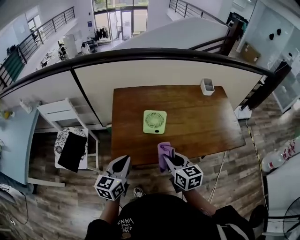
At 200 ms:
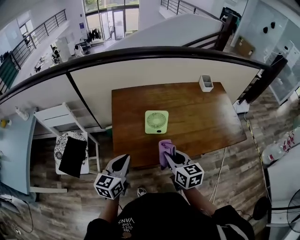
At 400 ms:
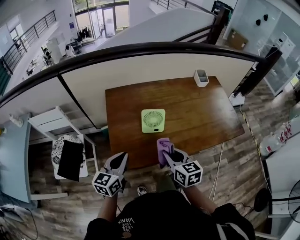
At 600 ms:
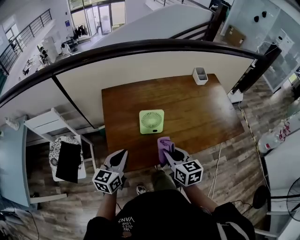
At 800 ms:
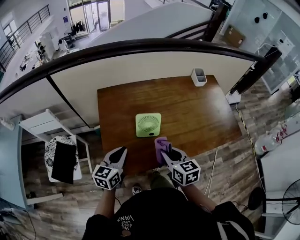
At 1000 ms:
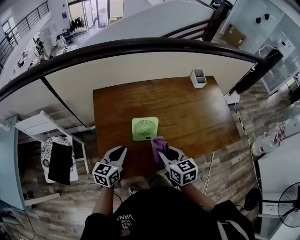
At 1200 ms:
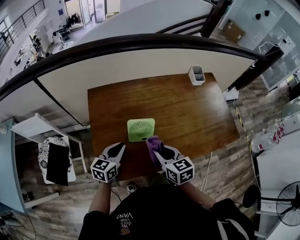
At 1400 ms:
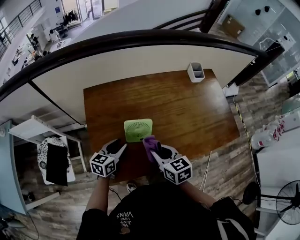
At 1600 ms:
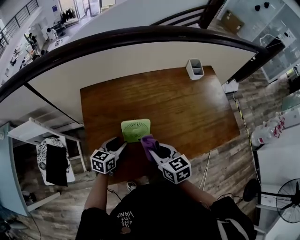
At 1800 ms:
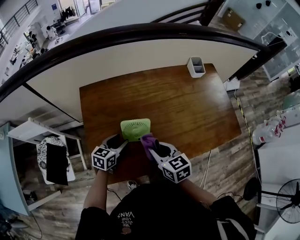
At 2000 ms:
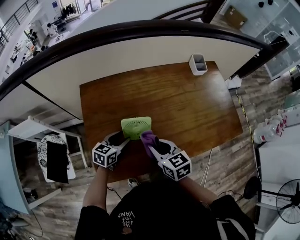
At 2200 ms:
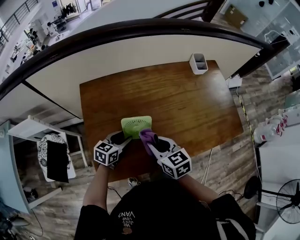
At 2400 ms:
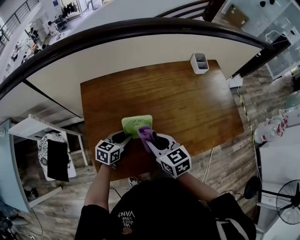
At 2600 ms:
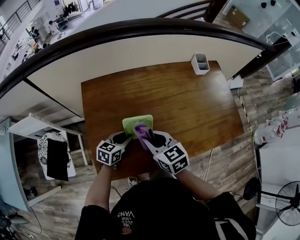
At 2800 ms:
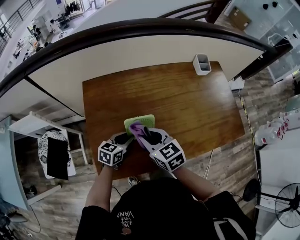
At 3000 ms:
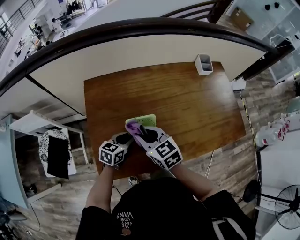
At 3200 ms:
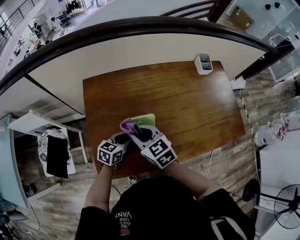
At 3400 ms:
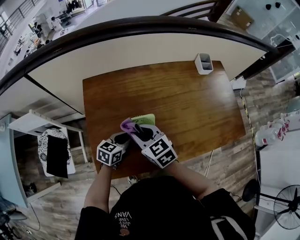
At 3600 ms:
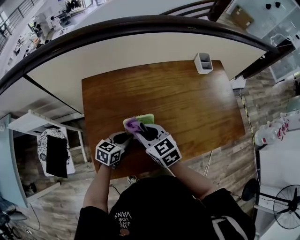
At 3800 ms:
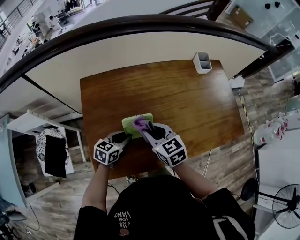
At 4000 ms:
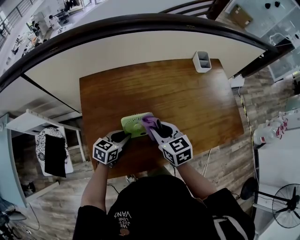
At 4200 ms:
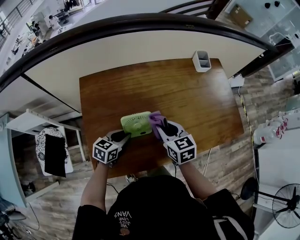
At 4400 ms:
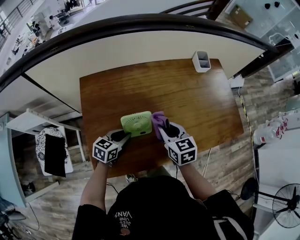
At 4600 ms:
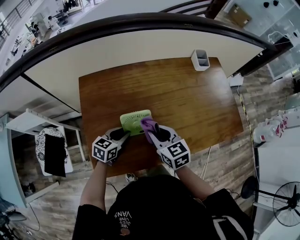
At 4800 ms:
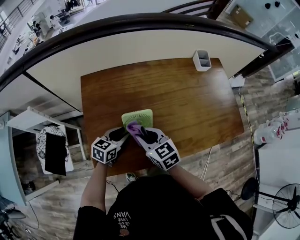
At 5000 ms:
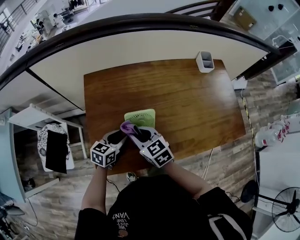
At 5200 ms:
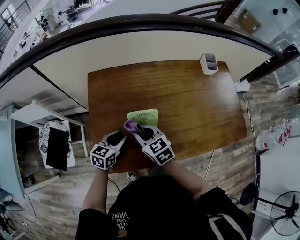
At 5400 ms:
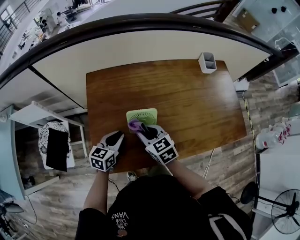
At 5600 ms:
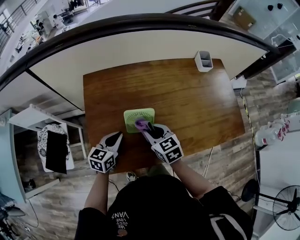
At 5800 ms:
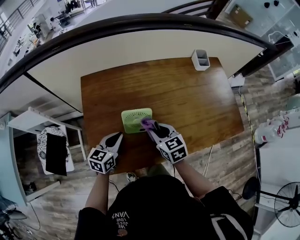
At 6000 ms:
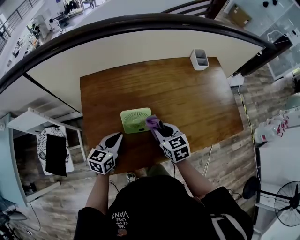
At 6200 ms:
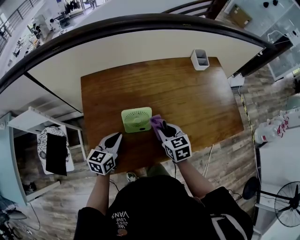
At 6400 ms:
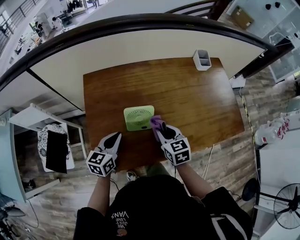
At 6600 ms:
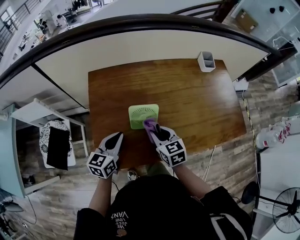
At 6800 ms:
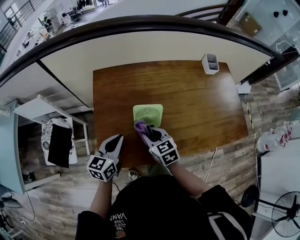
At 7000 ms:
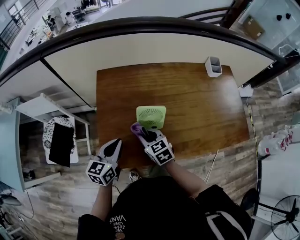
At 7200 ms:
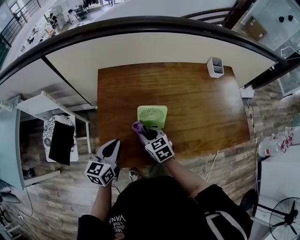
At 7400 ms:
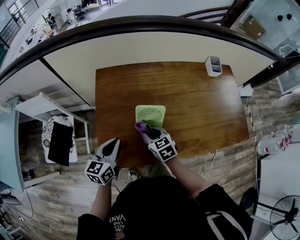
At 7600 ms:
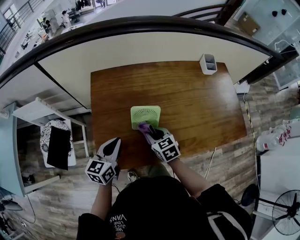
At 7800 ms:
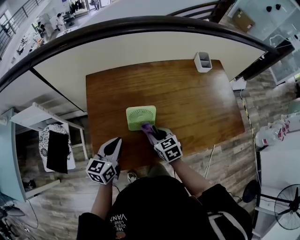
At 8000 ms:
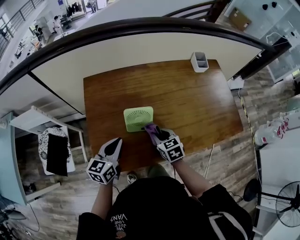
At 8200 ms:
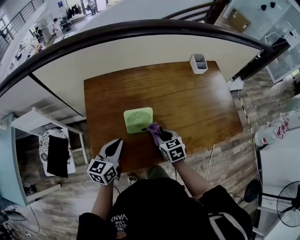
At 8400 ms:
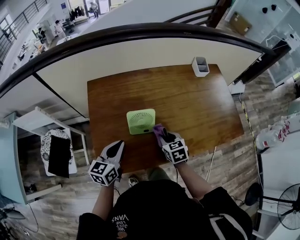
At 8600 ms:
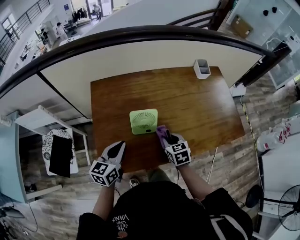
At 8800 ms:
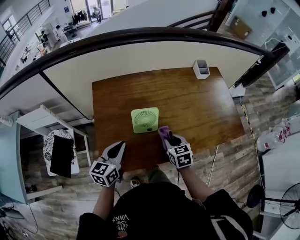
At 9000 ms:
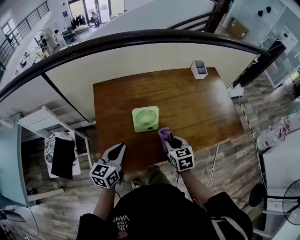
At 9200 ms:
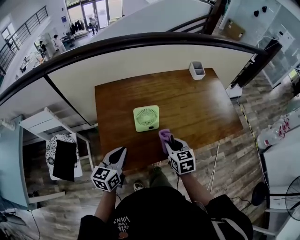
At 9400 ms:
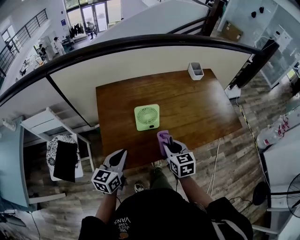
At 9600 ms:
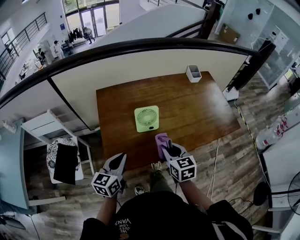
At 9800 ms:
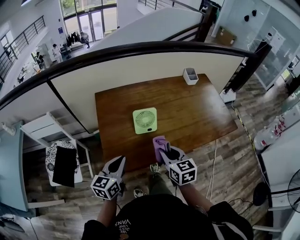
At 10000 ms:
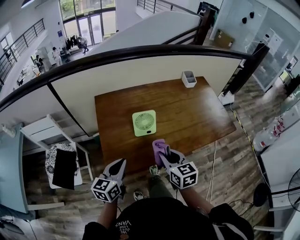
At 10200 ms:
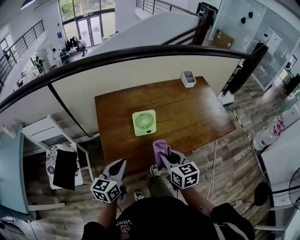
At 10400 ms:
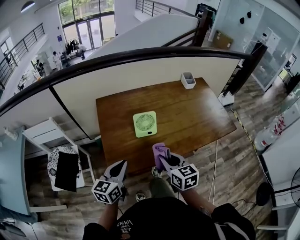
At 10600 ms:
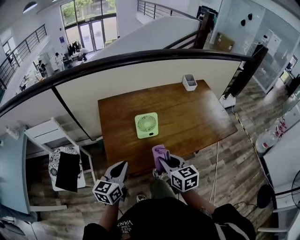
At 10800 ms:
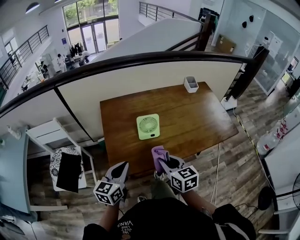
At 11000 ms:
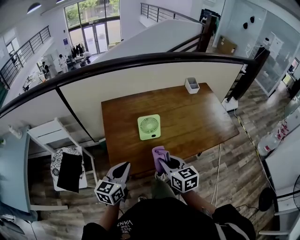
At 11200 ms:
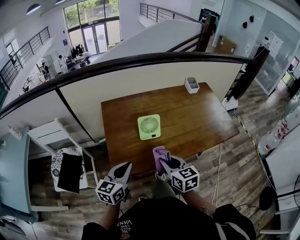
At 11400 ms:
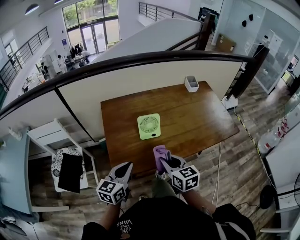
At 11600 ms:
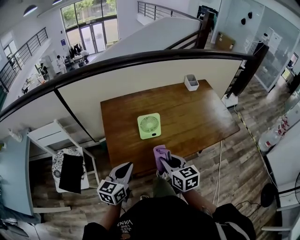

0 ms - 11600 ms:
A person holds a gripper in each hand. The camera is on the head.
0 ms - 1400 ms: The left gripper moves forward and downward, about 25 cm, rotates about 20 degrees, and opens its fingers; the right gripper heads forward and downward, covering approximately 15 cm.
1400 ms - 2800 ms: The left gripper changes place by some 5 cm. Meanwhile the right gripper moves to the left and forward, roughly 5 cm.
2800 ms - 4400 ms: The right gripper moves to the right, about 10 cm.
4400 ms - 5800 ms: The right gripper reaches approximately 15 cm to the left, then returns. Meanwhile the left gripper travels upward by some 5 cm, and closes.
5800 ms - 7200 ms: The right gripper heads to the left, covering approximately 10 cm. The left gripper is displaced to the left, backward and upward by some 10 cm.
7200 ms - 8800 ms: The right gripper is displaced to the right by approximately 15 cm, and changes its angle by approximately 20 degrees.
8800 ms - 10200 ms: The right gripper travels backward and upward by approximately 15 cm; the left gripper goes roughly 10 cm backward.
10200 ms - 11600 ms: The grippers move only a little.

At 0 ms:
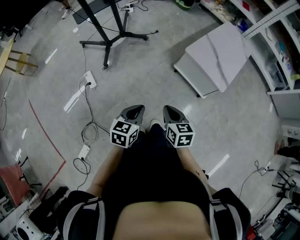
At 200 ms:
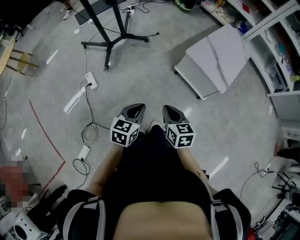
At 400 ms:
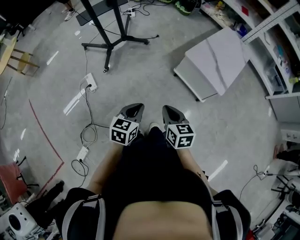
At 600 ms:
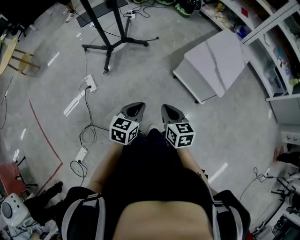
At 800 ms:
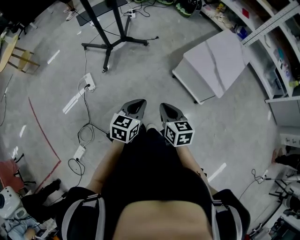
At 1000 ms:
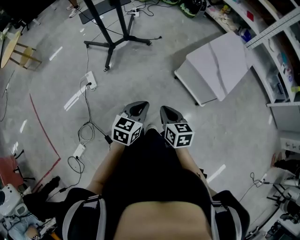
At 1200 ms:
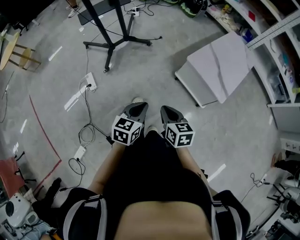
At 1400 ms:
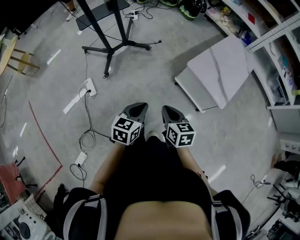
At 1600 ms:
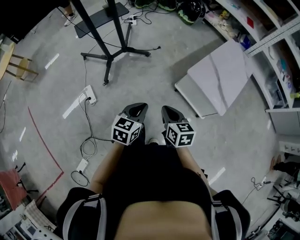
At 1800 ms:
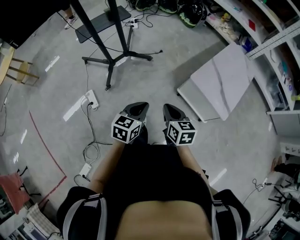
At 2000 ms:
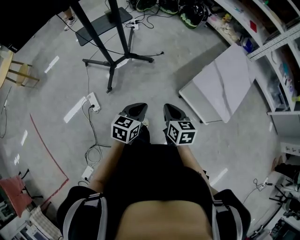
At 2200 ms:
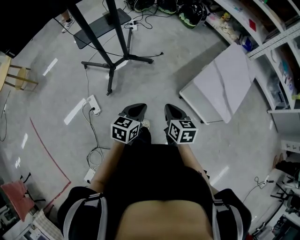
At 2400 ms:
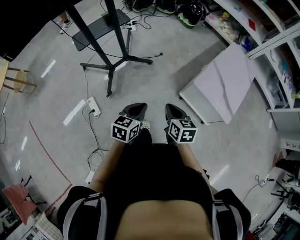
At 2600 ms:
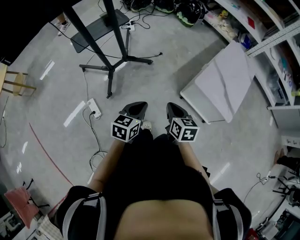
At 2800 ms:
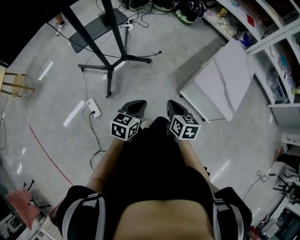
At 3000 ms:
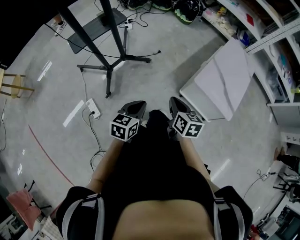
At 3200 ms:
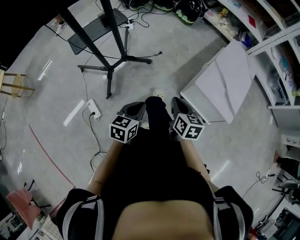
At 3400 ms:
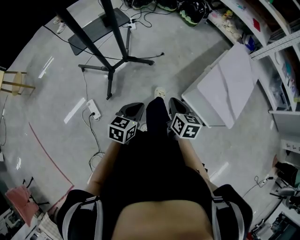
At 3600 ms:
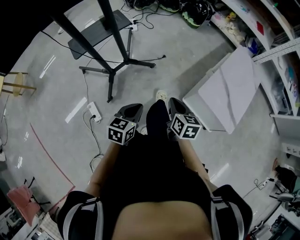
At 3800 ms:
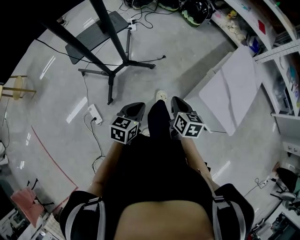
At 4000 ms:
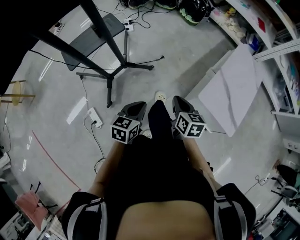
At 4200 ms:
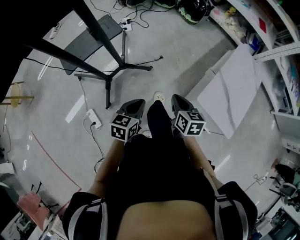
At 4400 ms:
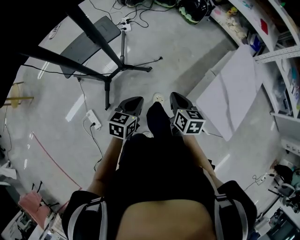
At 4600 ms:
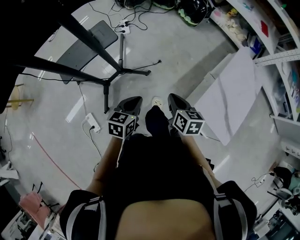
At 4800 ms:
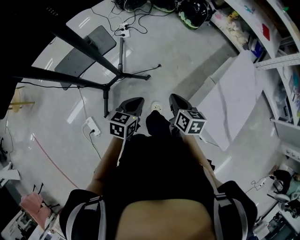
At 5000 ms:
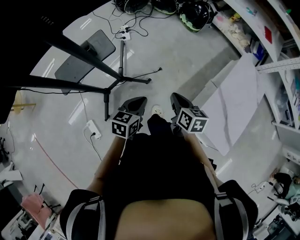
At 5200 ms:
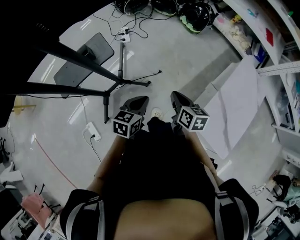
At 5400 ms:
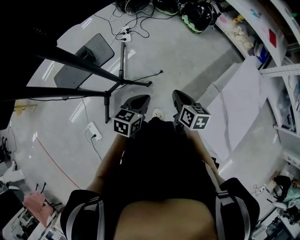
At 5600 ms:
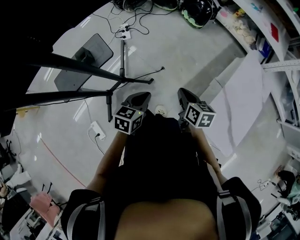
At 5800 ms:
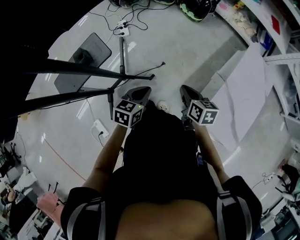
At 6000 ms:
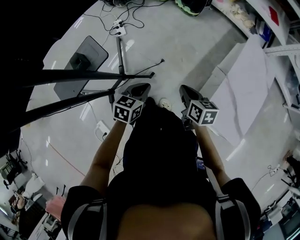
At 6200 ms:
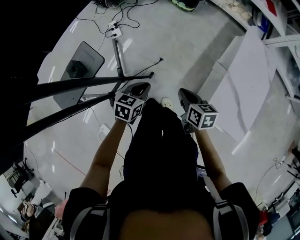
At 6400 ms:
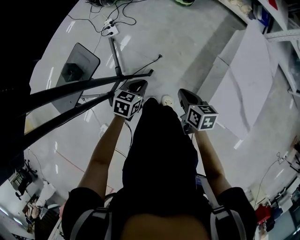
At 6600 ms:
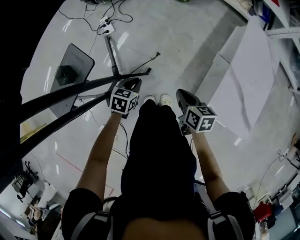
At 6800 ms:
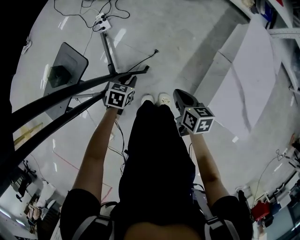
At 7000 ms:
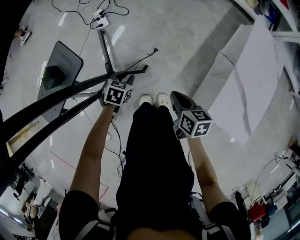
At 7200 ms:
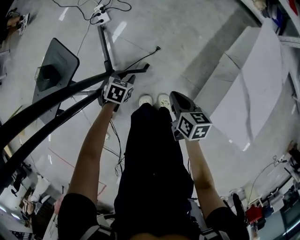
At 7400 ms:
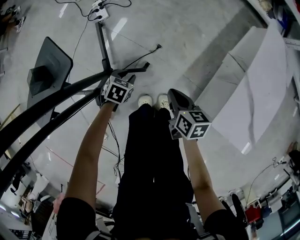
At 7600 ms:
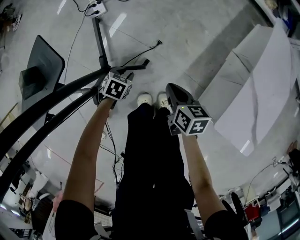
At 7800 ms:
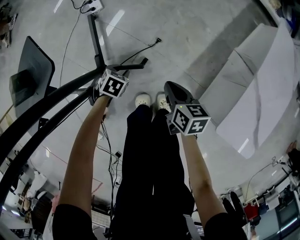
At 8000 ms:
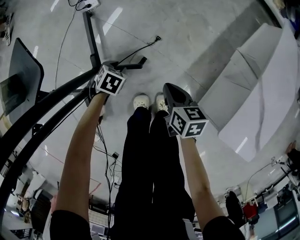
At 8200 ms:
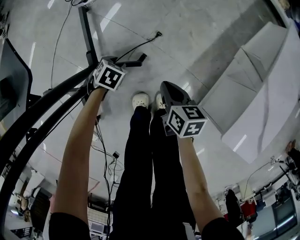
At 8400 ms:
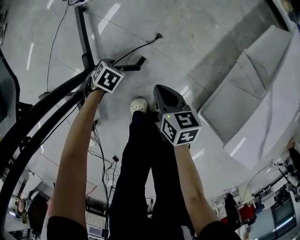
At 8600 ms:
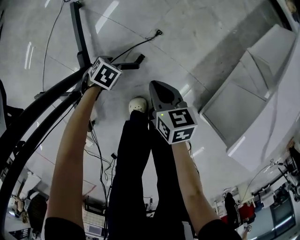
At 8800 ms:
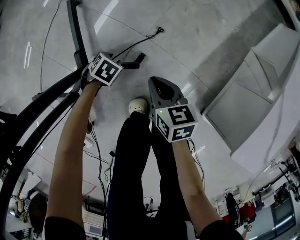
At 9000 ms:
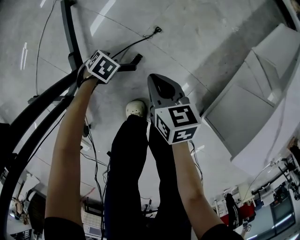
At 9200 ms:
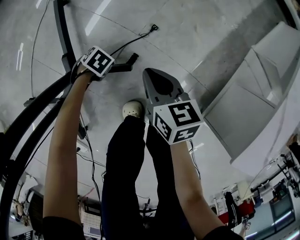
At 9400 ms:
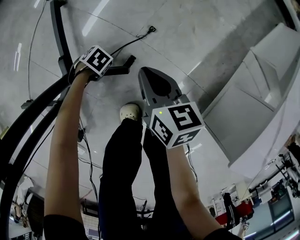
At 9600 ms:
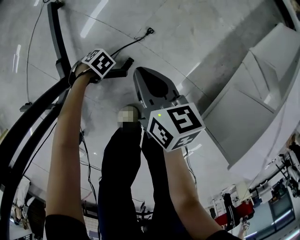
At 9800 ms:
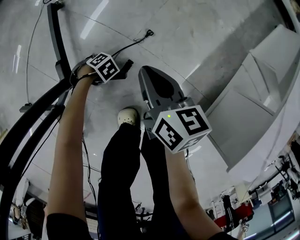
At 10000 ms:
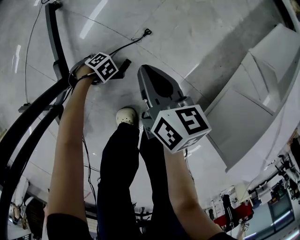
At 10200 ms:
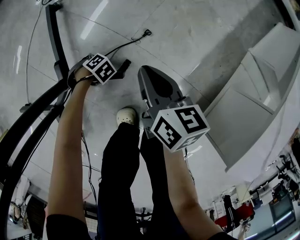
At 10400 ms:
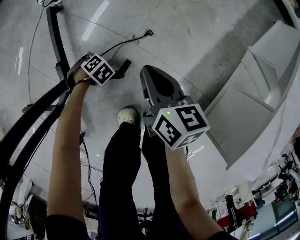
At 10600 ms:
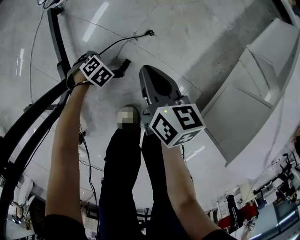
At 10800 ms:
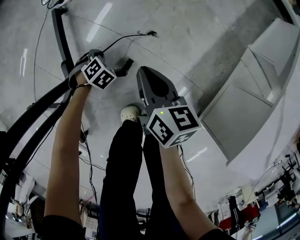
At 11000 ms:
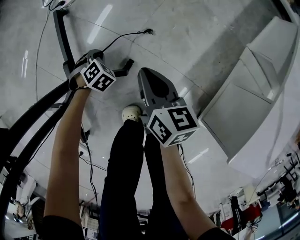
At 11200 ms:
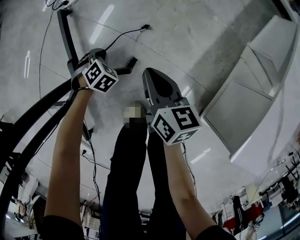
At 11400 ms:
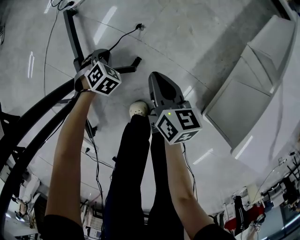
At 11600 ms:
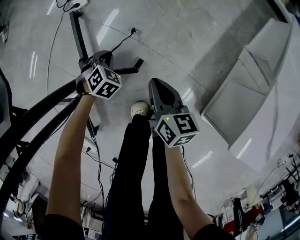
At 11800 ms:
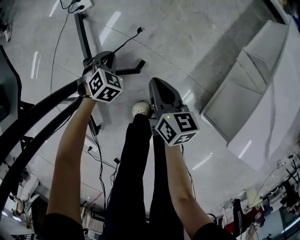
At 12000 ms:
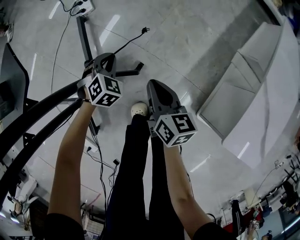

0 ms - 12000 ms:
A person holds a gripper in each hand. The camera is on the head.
0 ms - 1600 ms: Both grippers travel together forward, approximately 15 cm.
1600 ms - 3000 ms: The two grippers go some 15 cm forward and to the left.
3000 ms - 4400 ms: The two grippers go about 25 cm forward.
4400 ms - 6000 ms: The grippers both shift forward by roughly 20 cm.
6000 ms - 7600 ms: The two grippers go approximately 30 cm downward. The left gripper swivels some 30 degrees, and opens up.
7600 ms - 9000 ms: The grippers both shift downward by about 25 cm.
9000 ms - 10400 ms: The left gripper goes some 5 cm downward, rotates about 20 degrees, and closes, while the right gripper ends up about 5 cm from where it was.
10400 ms - 12000 ms: The right gripper heads upward, covering approximately 10 cm; the left gripper shifts about 30 cm upward, and changes its angle by some 40 degrees.
